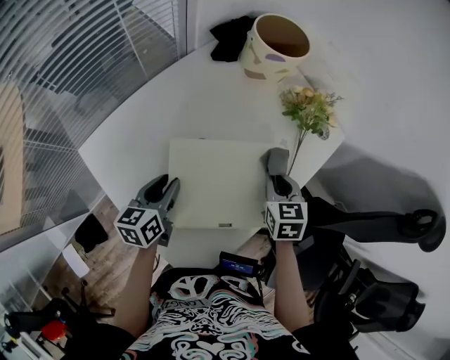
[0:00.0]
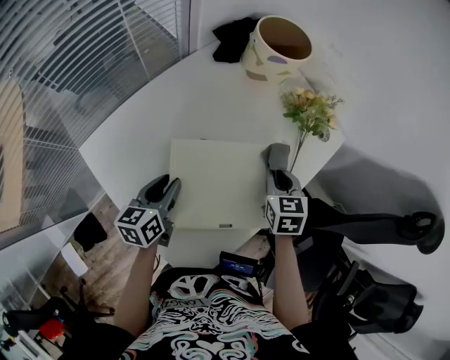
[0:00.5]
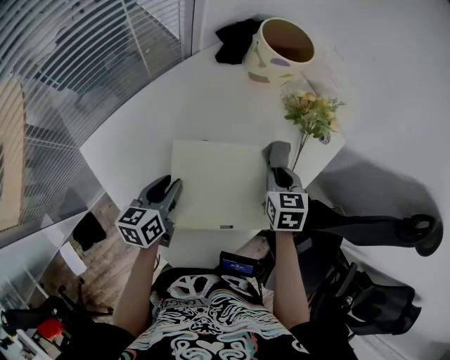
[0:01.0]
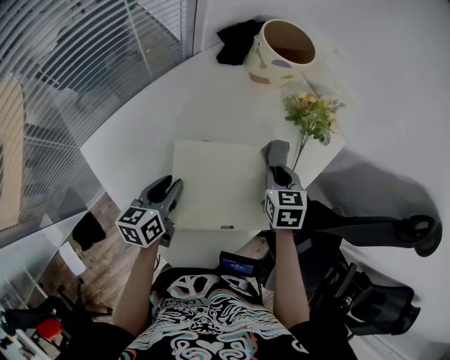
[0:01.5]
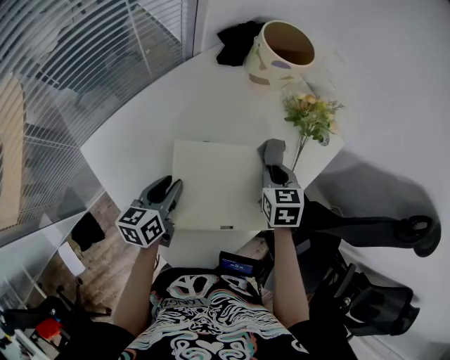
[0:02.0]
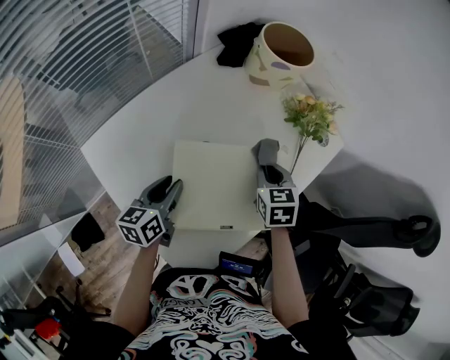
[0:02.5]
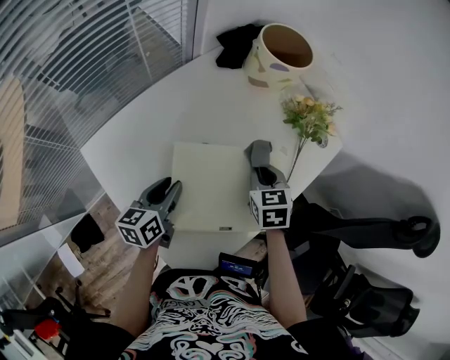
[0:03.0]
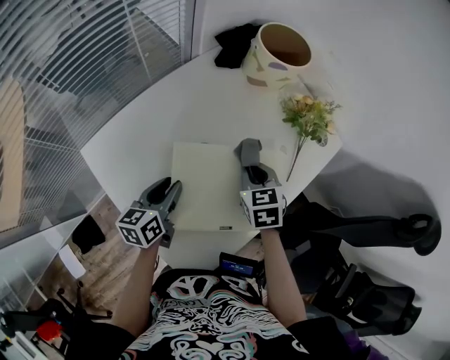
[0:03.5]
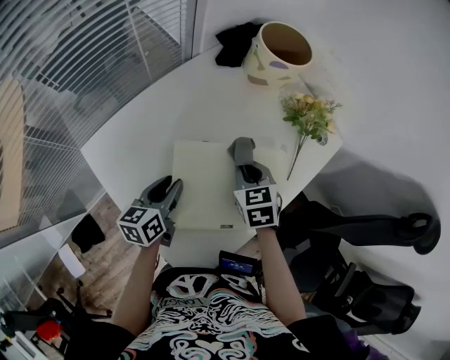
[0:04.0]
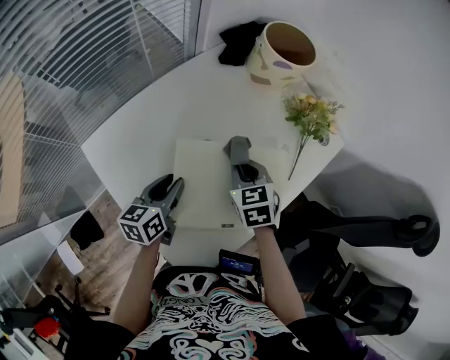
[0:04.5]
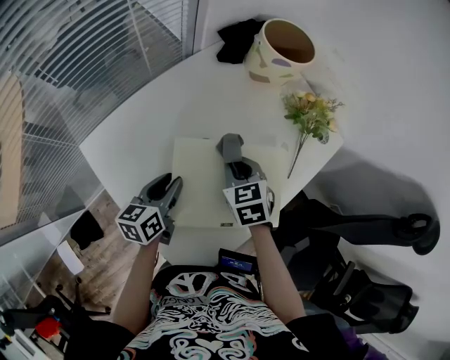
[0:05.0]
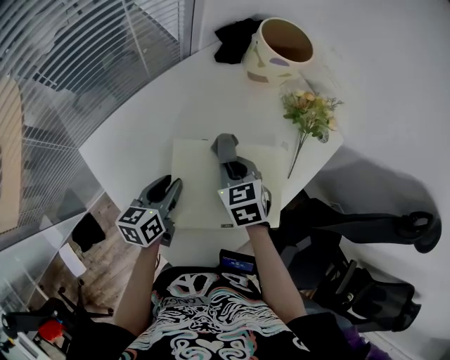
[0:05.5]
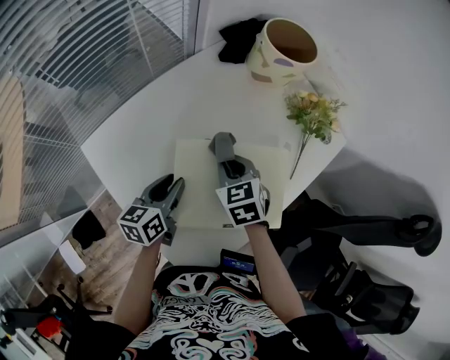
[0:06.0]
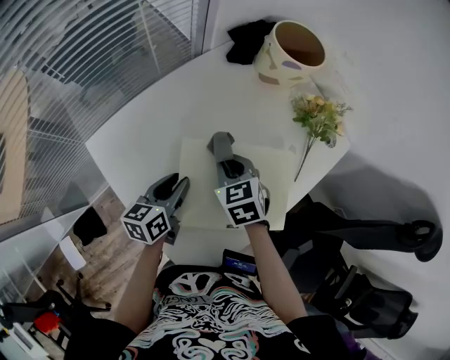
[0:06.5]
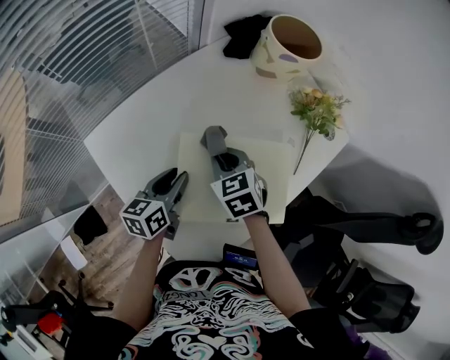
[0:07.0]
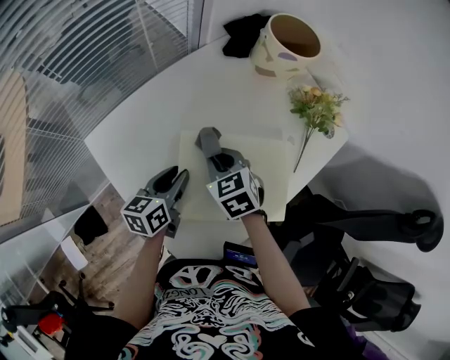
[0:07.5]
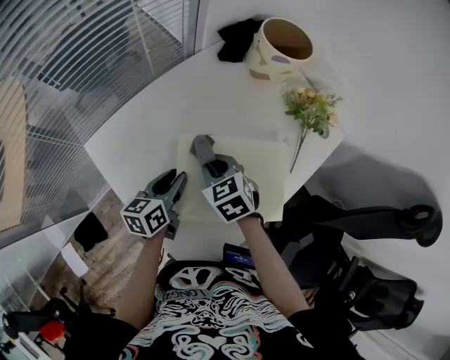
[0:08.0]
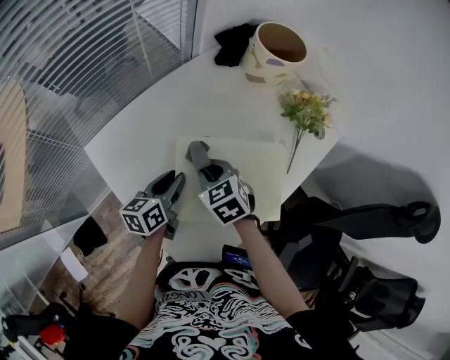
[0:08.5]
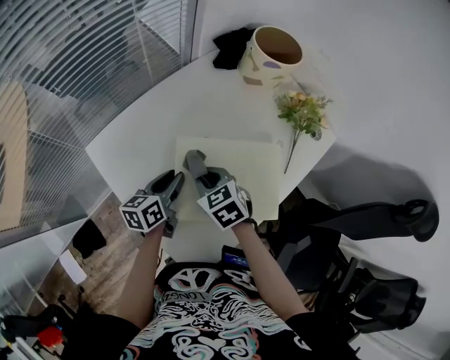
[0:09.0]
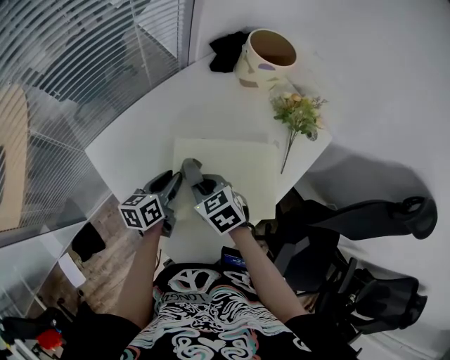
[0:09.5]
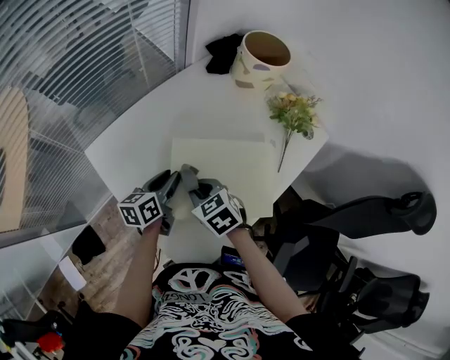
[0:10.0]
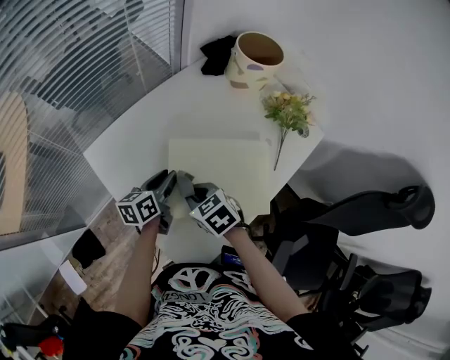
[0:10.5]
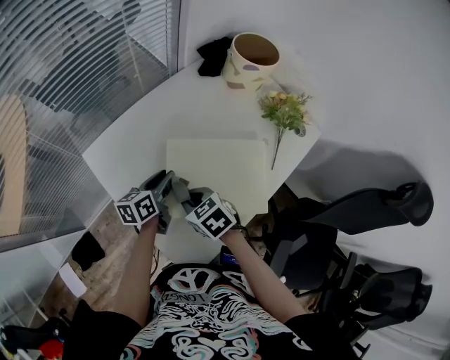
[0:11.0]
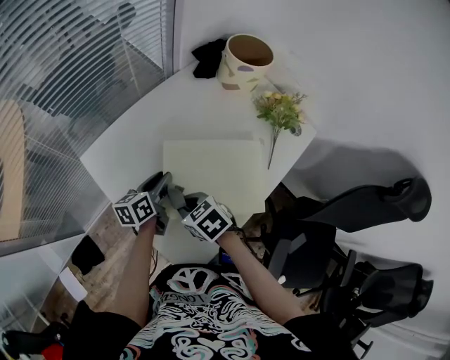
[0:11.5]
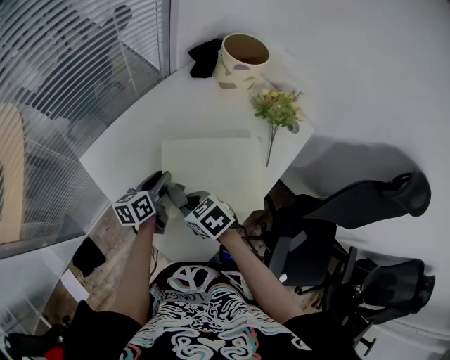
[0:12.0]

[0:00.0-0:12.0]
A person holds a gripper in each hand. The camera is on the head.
0.0 to 2.0 s: There are only small adjustments of the grippers.
2.0 to 4.0 s: The right gripper moves to the left, some 10 cm.
4.0 to 6.0 s: The right gripper heads to the left, covering some 5 cm.
6.0 to 8.0 s: The right gripper travels to the left by approximately 5 cm.
8.0 to 10.0 s: The right gripper goes about 5 cm backward.
10.0 to 12.0 s: The right gripper moves approximately 5 cm.

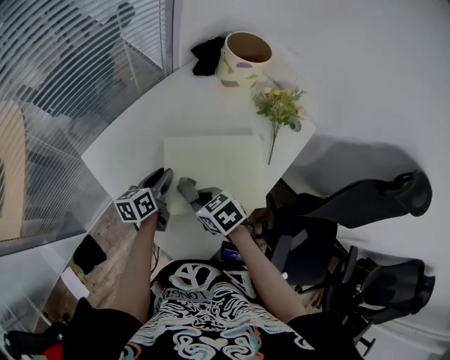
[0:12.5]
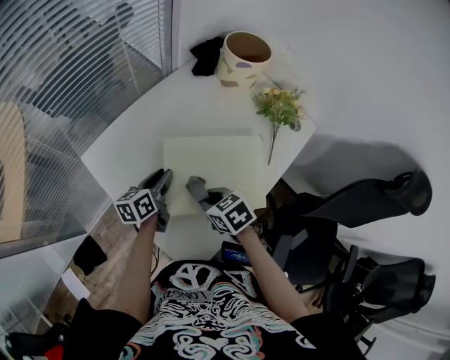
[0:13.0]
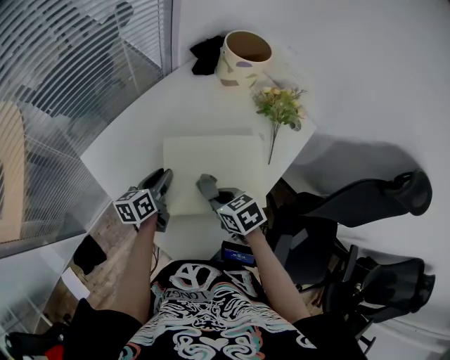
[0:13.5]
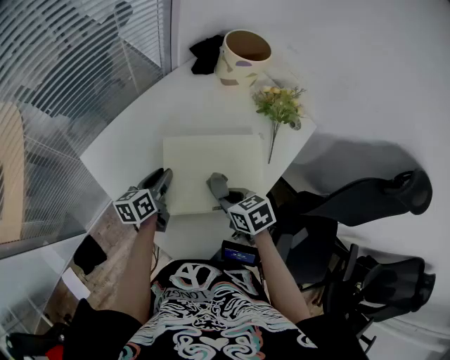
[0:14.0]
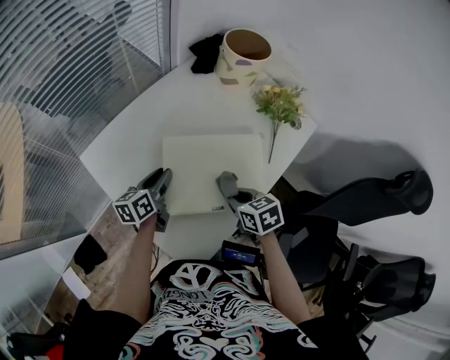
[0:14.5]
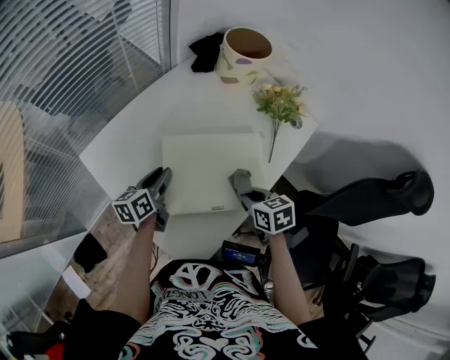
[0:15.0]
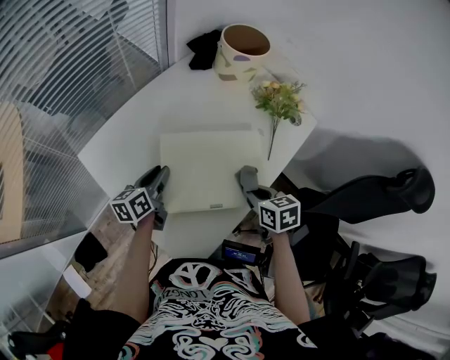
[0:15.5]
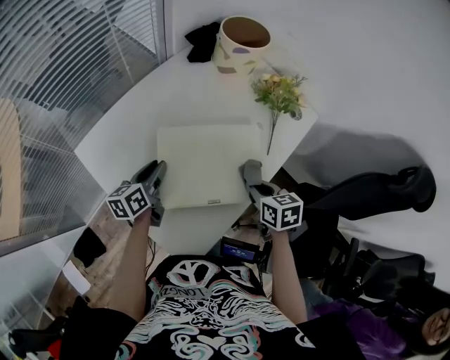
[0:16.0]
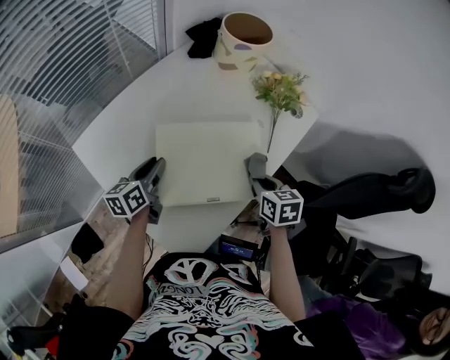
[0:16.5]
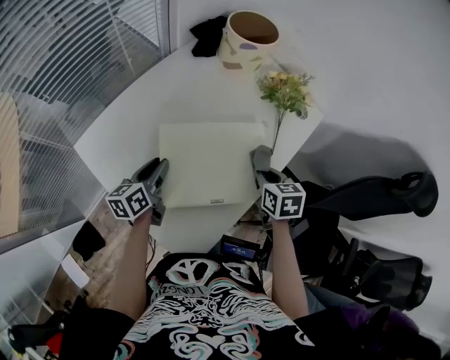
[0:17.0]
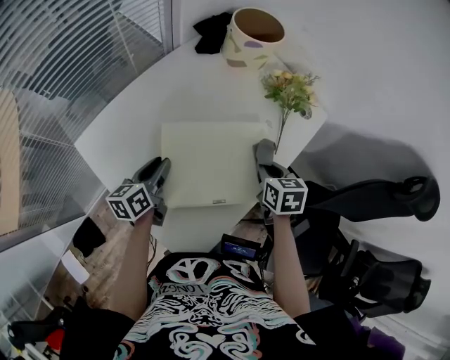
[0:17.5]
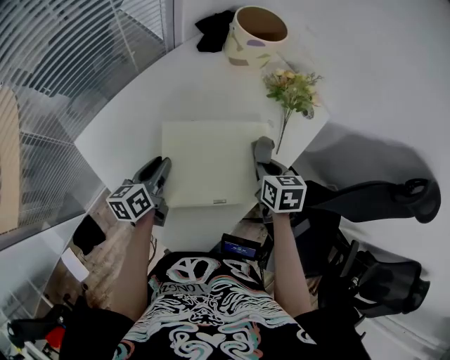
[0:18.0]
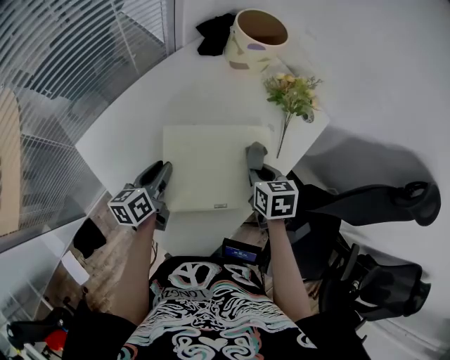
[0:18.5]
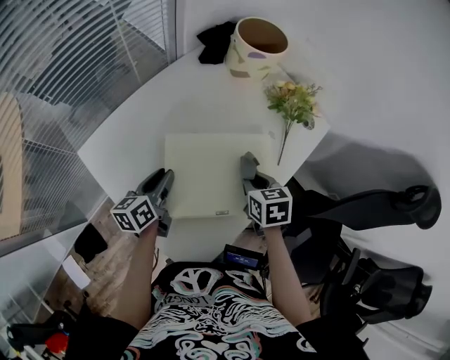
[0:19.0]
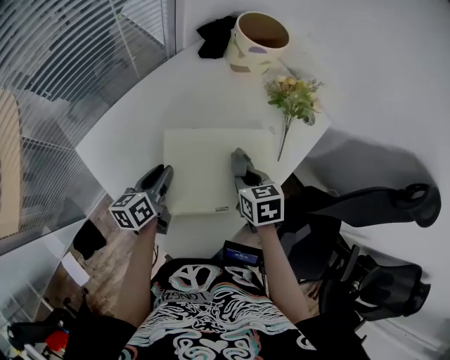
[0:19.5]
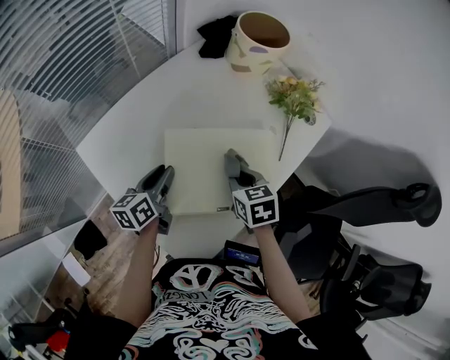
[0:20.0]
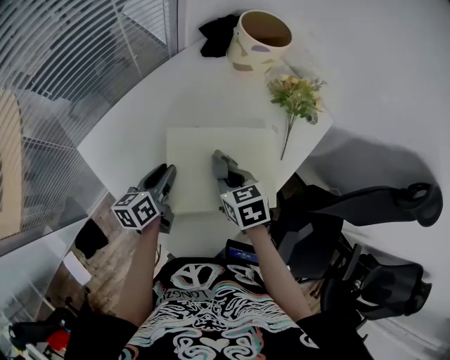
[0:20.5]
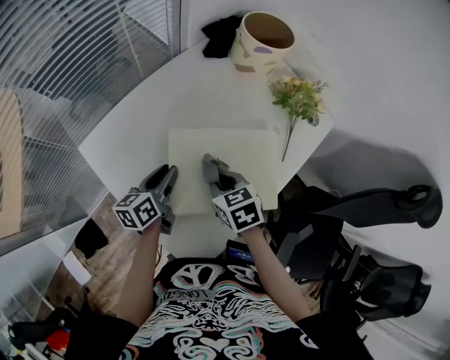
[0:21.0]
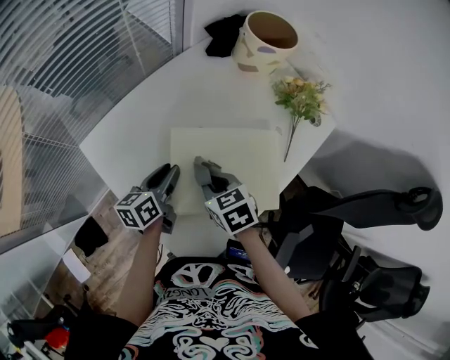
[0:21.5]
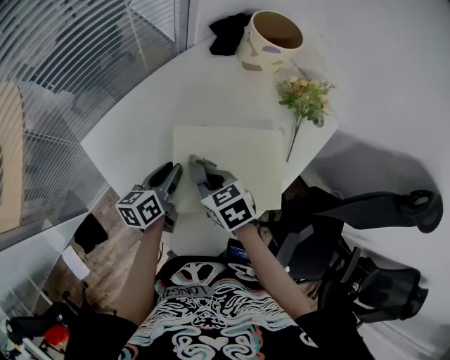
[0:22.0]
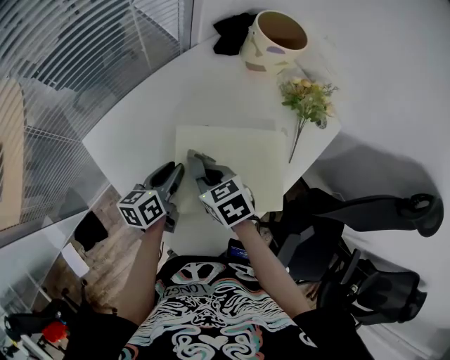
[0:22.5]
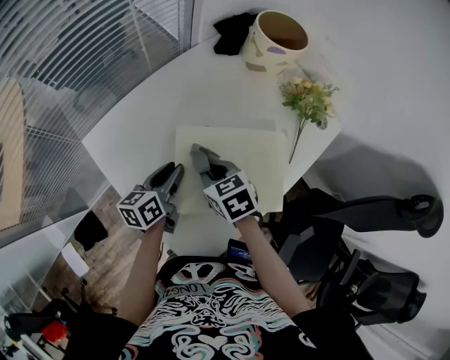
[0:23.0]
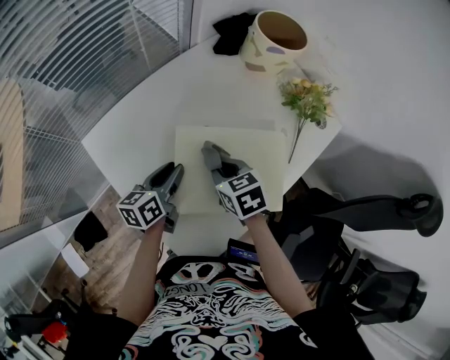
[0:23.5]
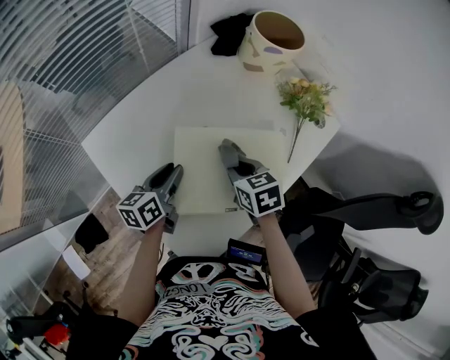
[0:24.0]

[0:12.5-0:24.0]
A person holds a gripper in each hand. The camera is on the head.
12.5 to 14.5 s: The right gripper is displaced to the right by some 10 cm.
14.5 to 16.5 s: The right gripper is displaced to the right by roughly 10 cm.
16.5 to 18.5 s: The right gripper shifts by roughly 5 cm.
18.5 to 20.0 s: The right gripper goes some 5 cm to the left.
20.0 to 22.0 s: The right gripper goes about 10 cm to the left.
22.0 to 24.0 s: The right gripper travels to the right by some 10 cm.

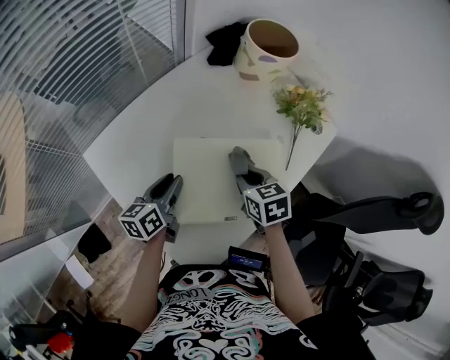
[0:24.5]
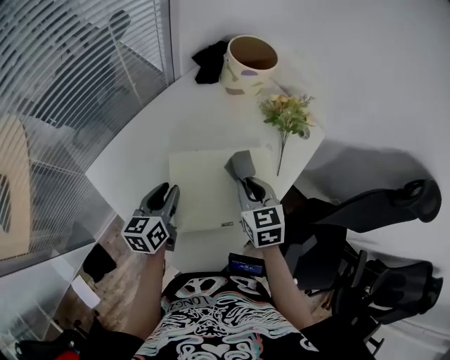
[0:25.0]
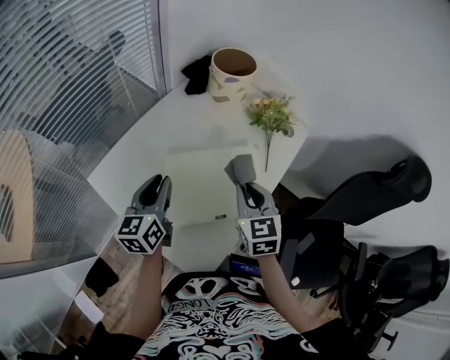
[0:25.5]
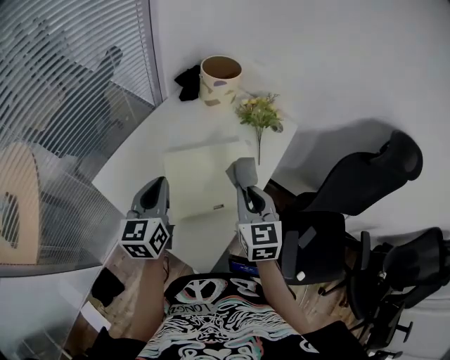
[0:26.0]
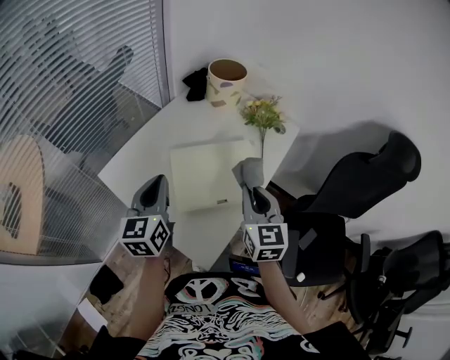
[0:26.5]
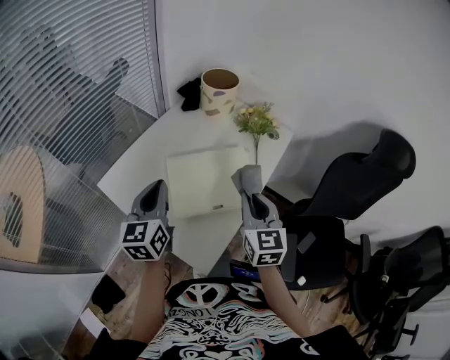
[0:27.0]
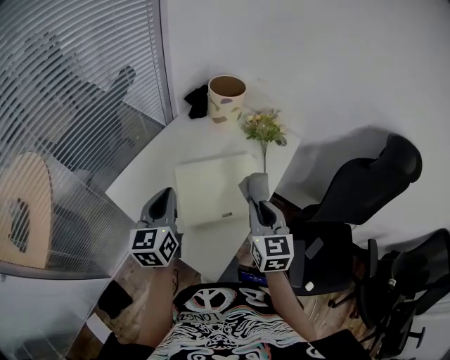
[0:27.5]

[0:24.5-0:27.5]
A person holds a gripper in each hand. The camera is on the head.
24.5 to 26.0 s: The right gripper shifts some 20 cm upward and backward, and tilts its fingers approximately 30 degrees upward. The left gripper goes about 20 cm upward, swivels some 30 degrees, and closes its fingers.
26.0 to 27.5 s: The grippers move only a little.

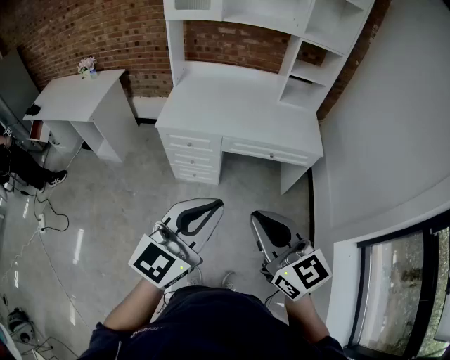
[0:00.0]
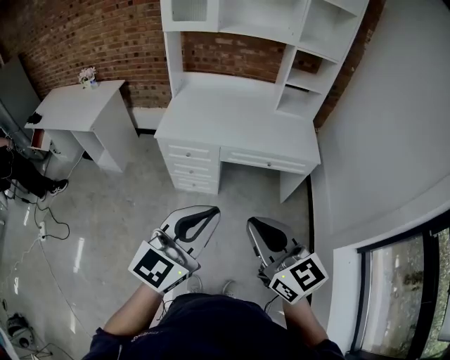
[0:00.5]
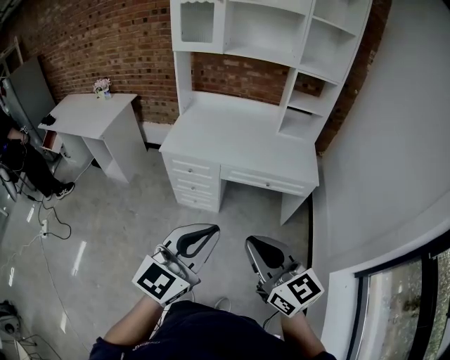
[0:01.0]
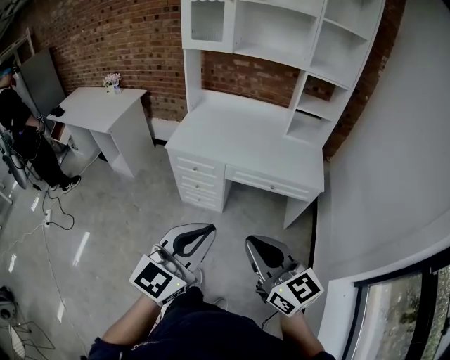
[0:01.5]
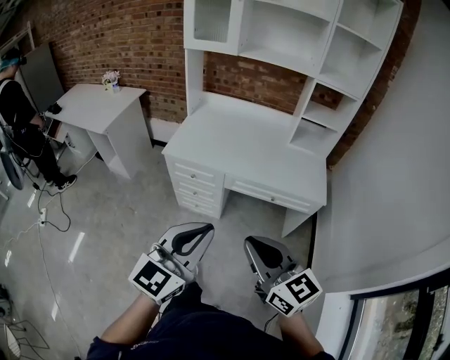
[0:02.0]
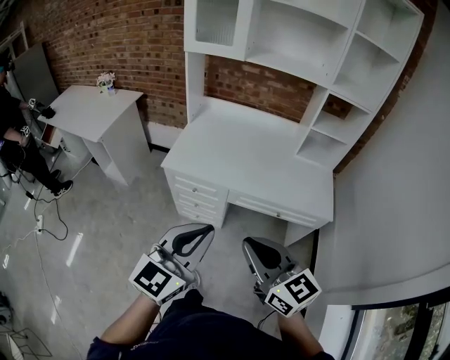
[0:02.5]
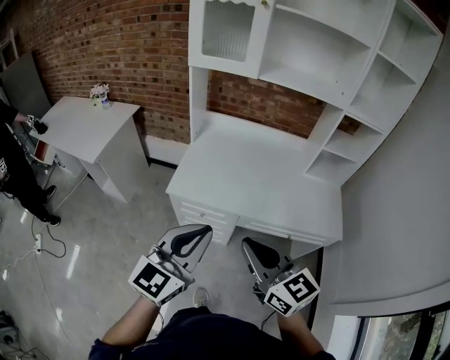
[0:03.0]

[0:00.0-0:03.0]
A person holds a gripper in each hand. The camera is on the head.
0.0 to 1.5 s: The two grippers go approximately 5 cm to the right.
1.5 to 3.0 s: The left gripper travels forward by about 30 cm. Meanwhile the right gripper shifts roughly 30 cm forward and to the left.
